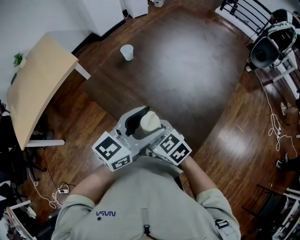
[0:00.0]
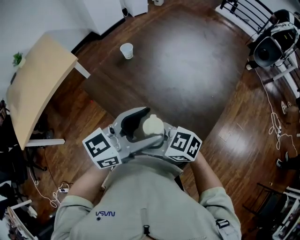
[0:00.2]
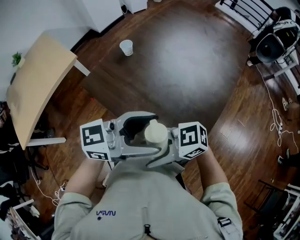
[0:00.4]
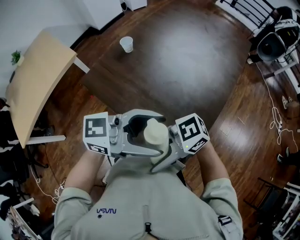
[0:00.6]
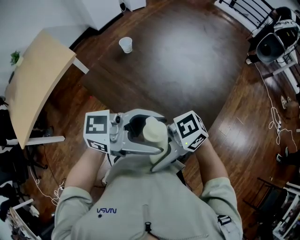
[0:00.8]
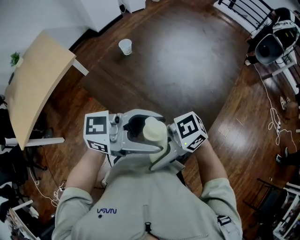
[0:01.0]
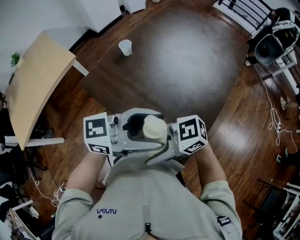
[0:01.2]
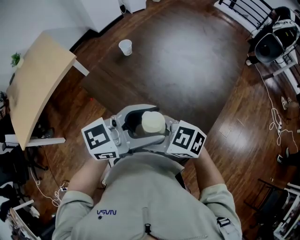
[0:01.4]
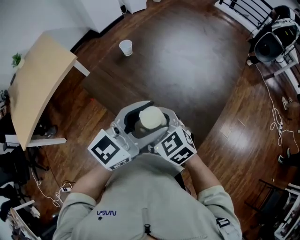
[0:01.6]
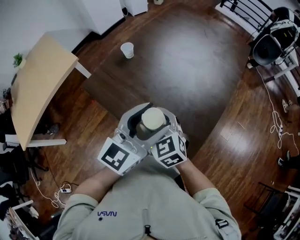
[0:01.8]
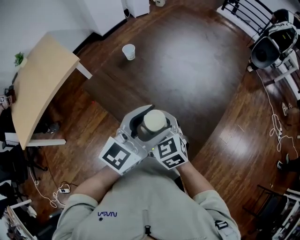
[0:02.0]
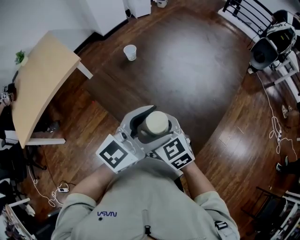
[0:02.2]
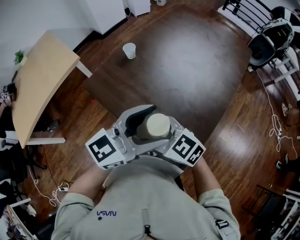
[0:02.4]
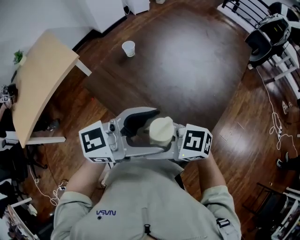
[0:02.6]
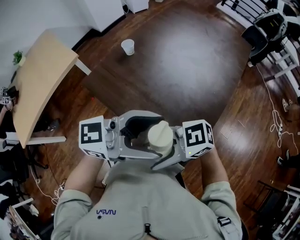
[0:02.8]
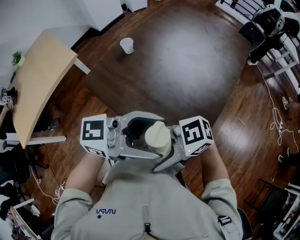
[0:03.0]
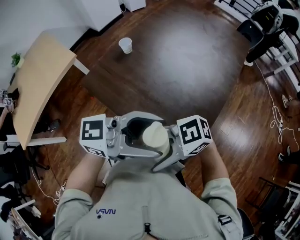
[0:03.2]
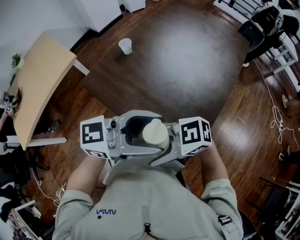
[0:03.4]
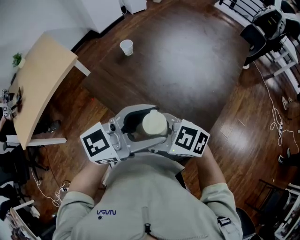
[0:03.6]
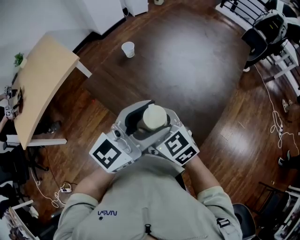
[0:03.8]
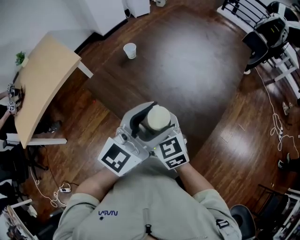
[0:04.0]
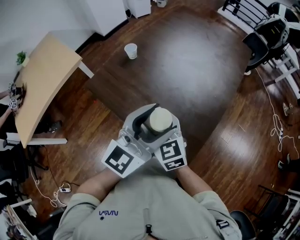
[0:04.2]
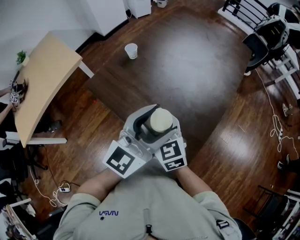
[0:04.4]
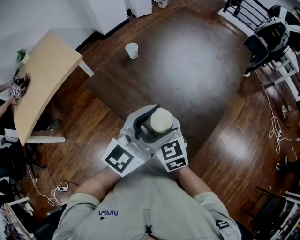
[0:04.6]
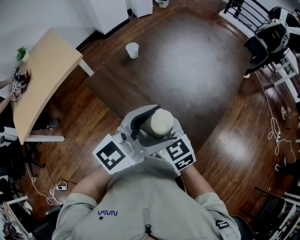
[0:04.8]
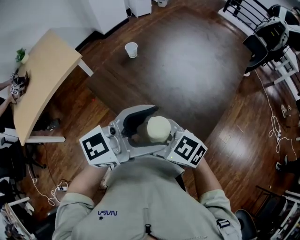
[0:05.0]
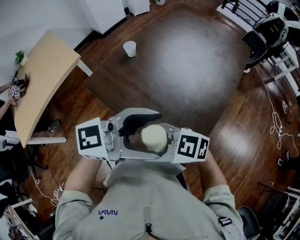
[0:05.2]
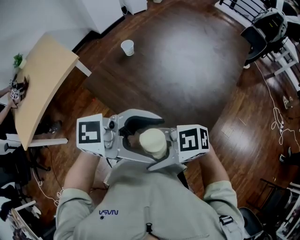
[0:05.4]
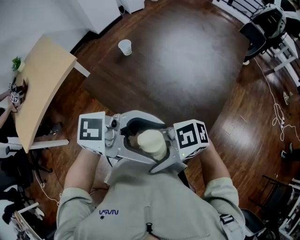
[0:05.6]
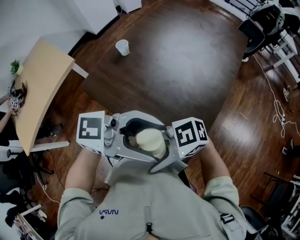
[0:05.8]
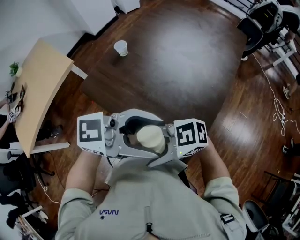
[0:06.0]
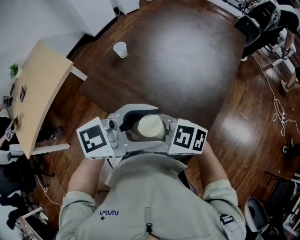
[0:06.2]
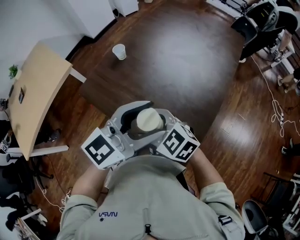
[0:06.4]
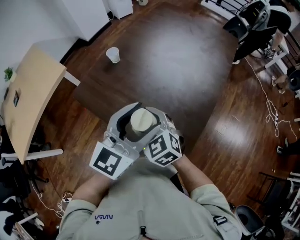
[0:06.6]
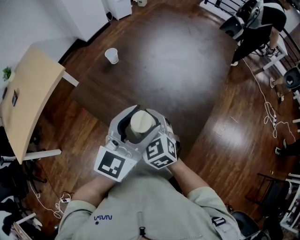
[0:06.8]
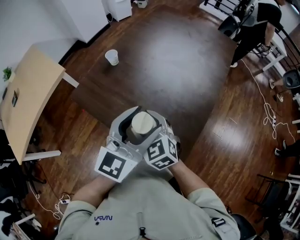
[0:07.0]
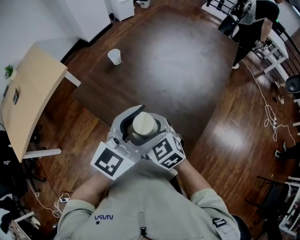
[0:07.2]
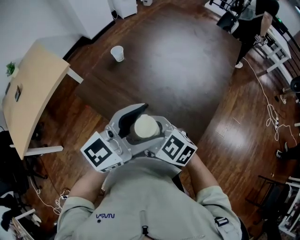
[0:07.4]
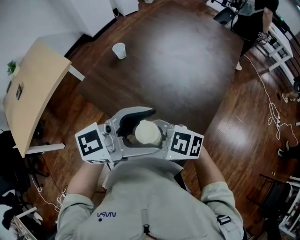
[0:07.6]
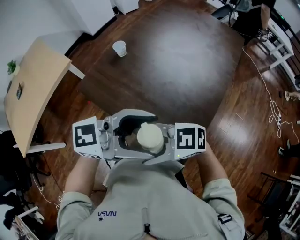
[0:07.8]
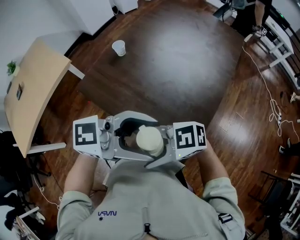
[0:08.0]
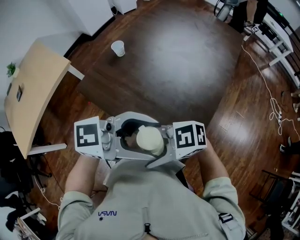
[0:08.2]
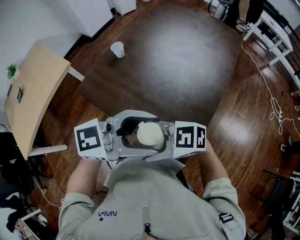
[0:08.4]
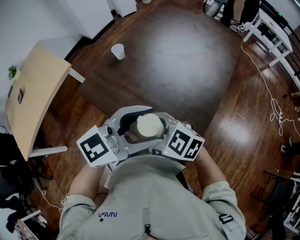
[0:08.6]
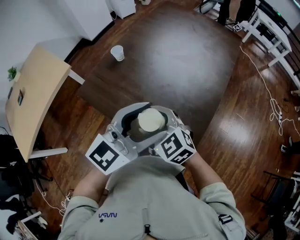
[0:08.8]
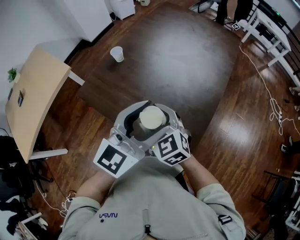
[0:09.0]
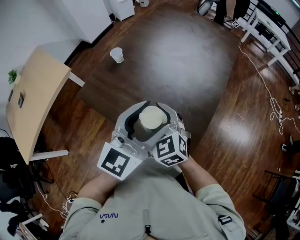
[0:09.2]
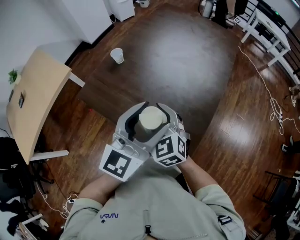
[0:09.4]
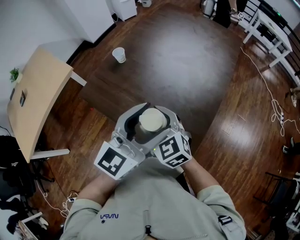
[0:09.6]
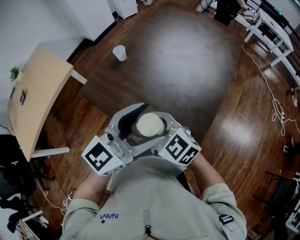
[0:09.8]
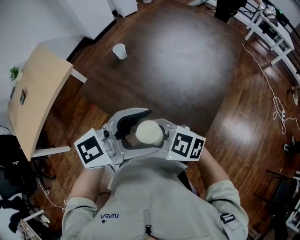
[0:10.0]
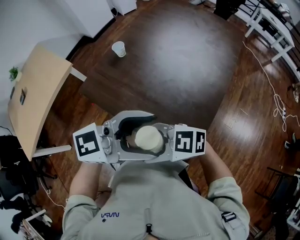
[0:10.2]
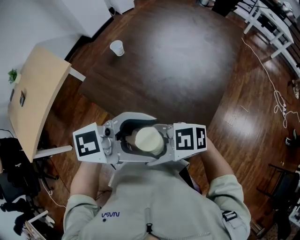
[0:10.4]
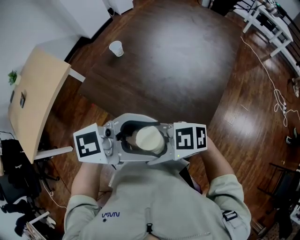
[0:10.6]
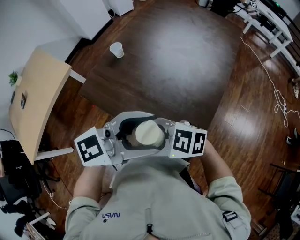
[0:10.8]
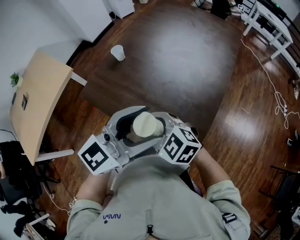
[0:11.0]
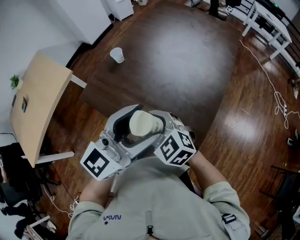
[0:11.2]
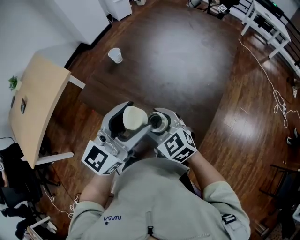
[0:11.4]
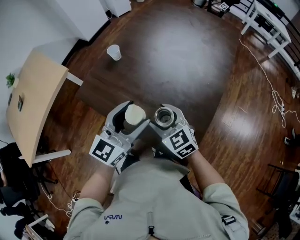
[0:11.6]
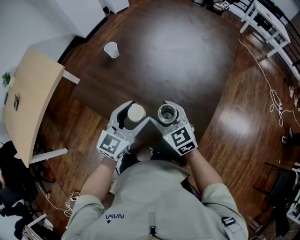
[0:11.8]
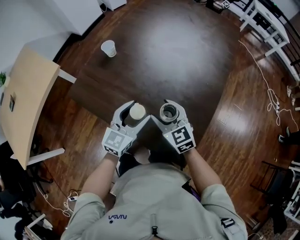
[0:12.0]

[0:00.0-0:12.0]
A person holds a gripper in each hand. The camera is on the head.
0:00.0 to 0:01.6: The right gripper shifts approximately 5 cm upward.
0:01.6 to 0:03.0: The right gripper moves approximately 15 cm, and rotates some 70 degrees. Meanwhile the left gripper changes place by about 5 cm, and rotates approximately 40 degrees.
0:03.0 to 0:04.4: The left gripper ends up approximately 5 cm from where it was, and changes its angle by some 50 degrees; the right gripper changes place by some 15 cm, and swivels approximately 80 degrees.
0:04.4 to 0:06.0: The left gripper changes place by some 5 cm, and rotates some 50 degrees; the right gripper moves about 15 cm, and rotates about 70 degrees.
0:06.0 to 0:07.6: The right gripper rotates roughly 20 degrees, while the left gripper rotates some 20 degrees.
0:07.6 to 0:09.0: The right gripper changes place by about 10 cm, and swivels about 50 degrees. The left gripper rotates approximately 30 degrees.
0:09.0 to 0:10.4: The left gripper changes place by roughly 10 cm, and turns by roughly 40 degrees. Meanwhile the right gripper shifts by approximately 15 cm, and changes its angle by some 70 degrees.
0:10.4 to 0:12.0: The right gripper ends up some 25 cm from where it was, and changes its angle by roughly 70 degrees. Meanwhile the left gripper is displaced downward by about 20 cm, and turns by about 50 degrees.

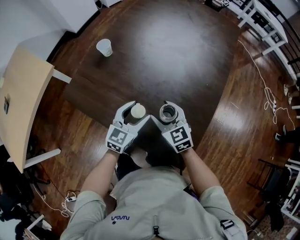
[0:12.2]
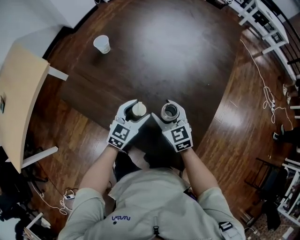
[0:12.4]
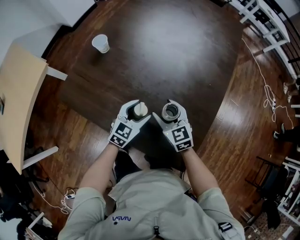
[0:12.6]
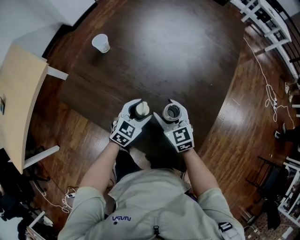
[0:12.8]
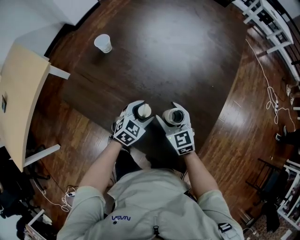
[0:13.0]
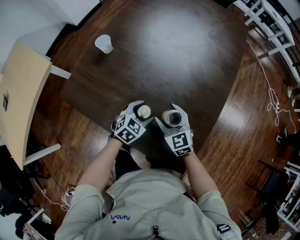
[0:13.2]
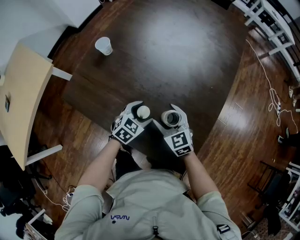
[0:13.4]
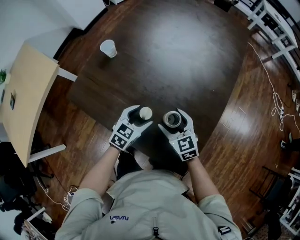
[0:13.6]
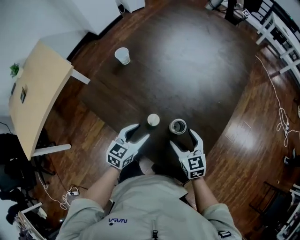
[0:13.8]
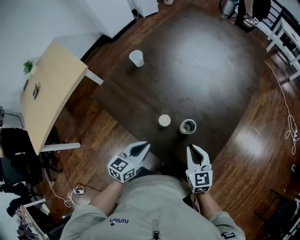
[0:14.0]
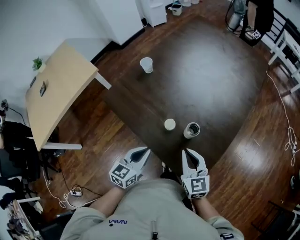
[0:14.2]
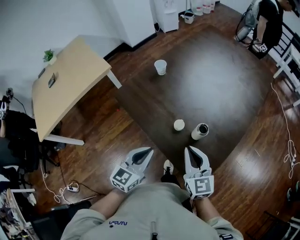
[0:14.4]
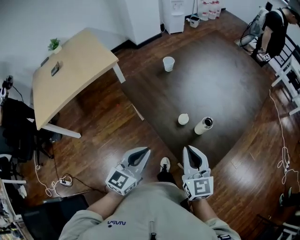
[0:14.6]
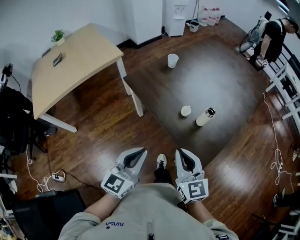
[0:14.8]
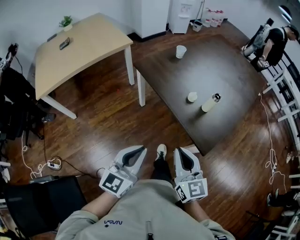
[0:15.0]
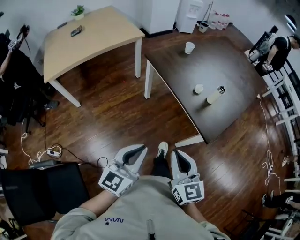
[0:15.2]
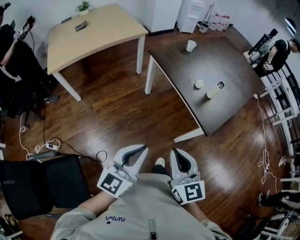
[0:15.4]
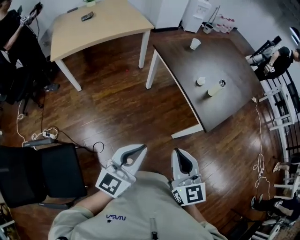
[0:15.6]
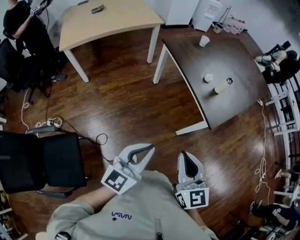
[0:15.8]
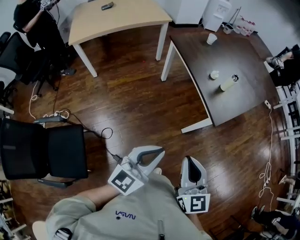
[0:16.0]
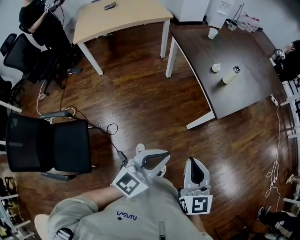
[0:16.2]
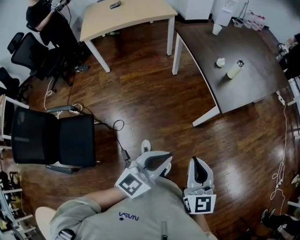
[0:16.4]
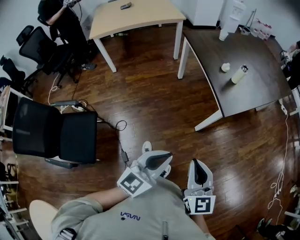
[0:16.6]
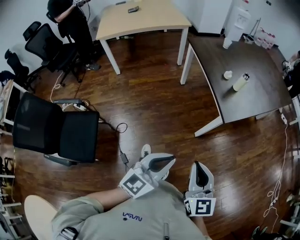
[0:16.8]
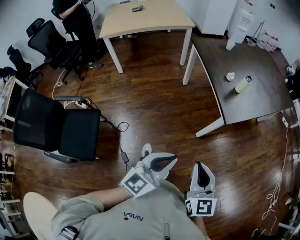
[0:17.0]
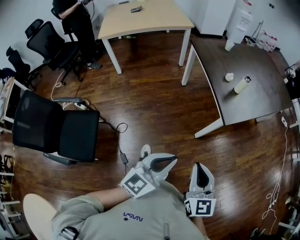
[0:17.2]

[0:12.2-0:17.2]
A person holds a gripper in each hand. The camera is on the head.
0:12.2 to 0:13.8: The left gripper travels backward by some 5 cm, and travels downward and back again, approximately 10 cm each way. Meanwhile the right gripper goes some 10 cm to the right.
0:13.8 to 0:15.6: The pair of grippers is taken backward, about 40 cm. Both grippers travel together upward, some 20 cm. The left gripper points its fingers roughly 30 degrees further upward, and closes, while the right gripper swivels some 30 degrees, and closes up.
0:15.6 to 0:17.2: The left gripper moves to the right and backward, approximately 20 cm. The right gripper goes about 15 cm to the right, backward and downward.

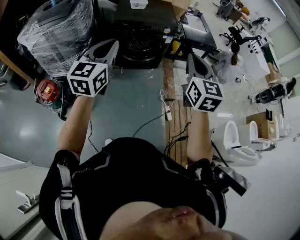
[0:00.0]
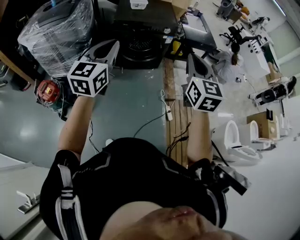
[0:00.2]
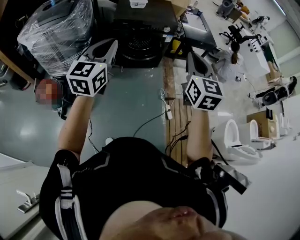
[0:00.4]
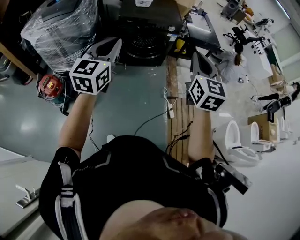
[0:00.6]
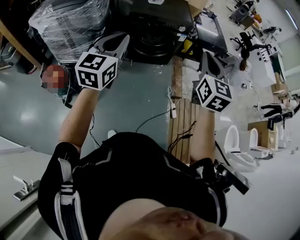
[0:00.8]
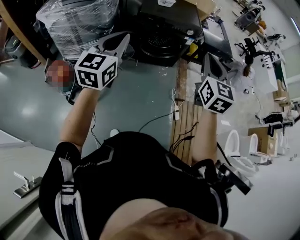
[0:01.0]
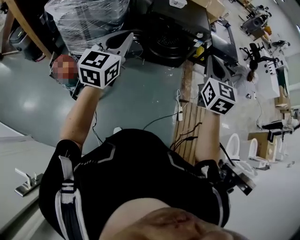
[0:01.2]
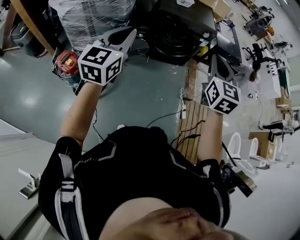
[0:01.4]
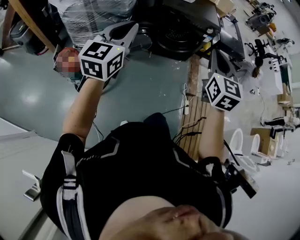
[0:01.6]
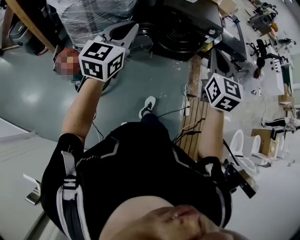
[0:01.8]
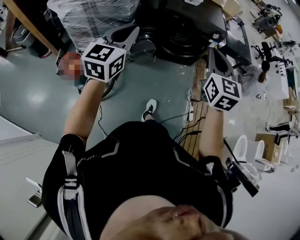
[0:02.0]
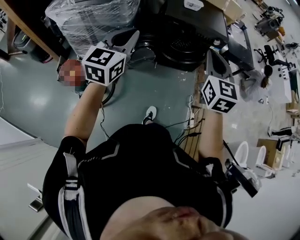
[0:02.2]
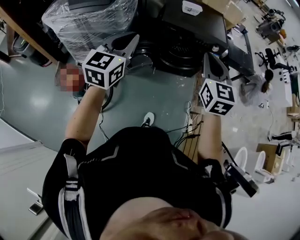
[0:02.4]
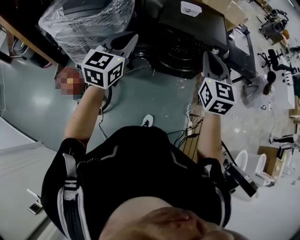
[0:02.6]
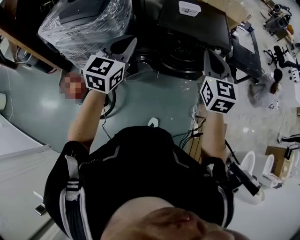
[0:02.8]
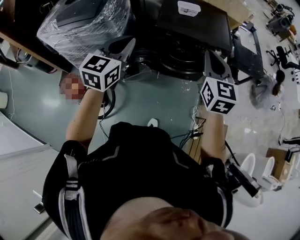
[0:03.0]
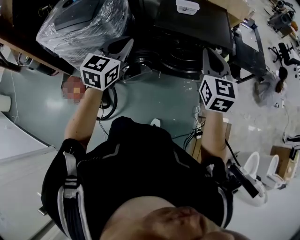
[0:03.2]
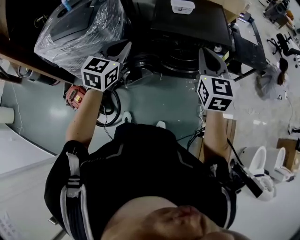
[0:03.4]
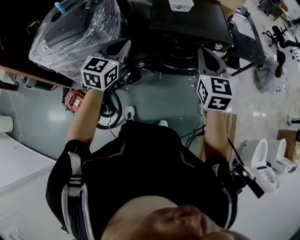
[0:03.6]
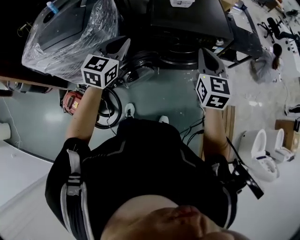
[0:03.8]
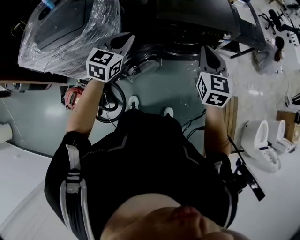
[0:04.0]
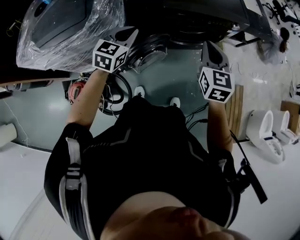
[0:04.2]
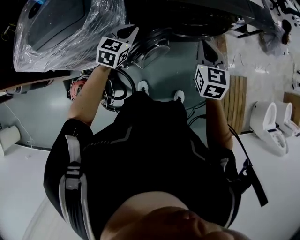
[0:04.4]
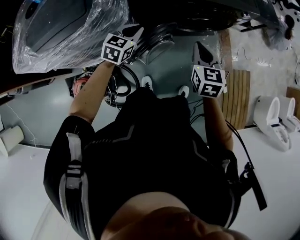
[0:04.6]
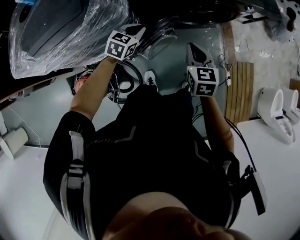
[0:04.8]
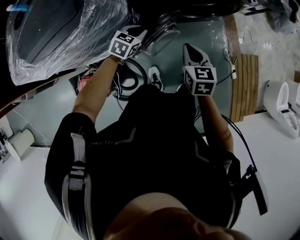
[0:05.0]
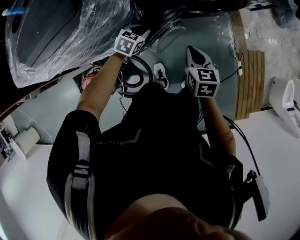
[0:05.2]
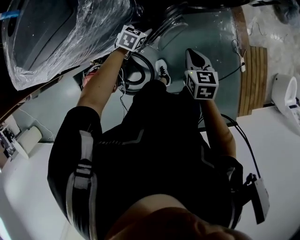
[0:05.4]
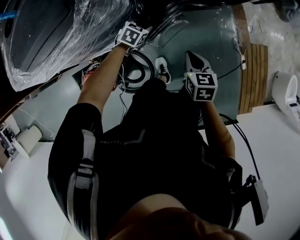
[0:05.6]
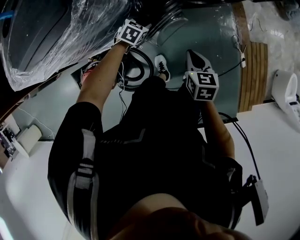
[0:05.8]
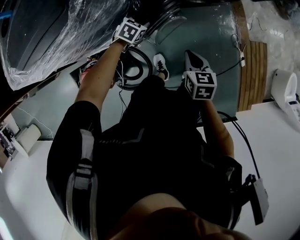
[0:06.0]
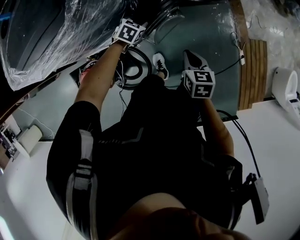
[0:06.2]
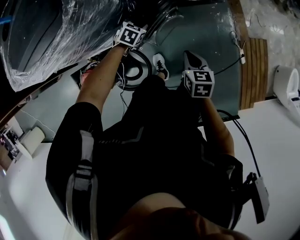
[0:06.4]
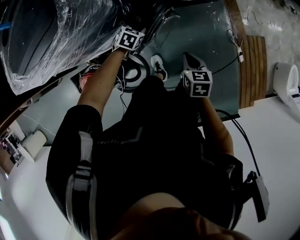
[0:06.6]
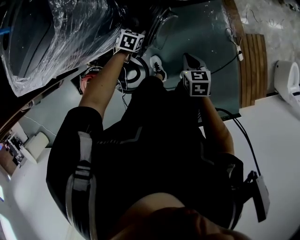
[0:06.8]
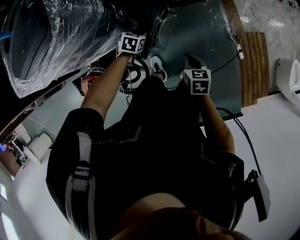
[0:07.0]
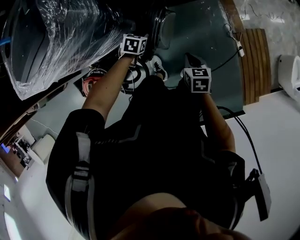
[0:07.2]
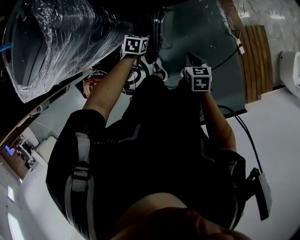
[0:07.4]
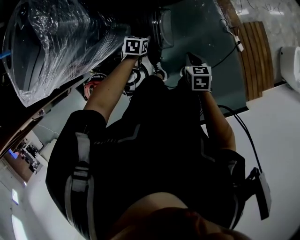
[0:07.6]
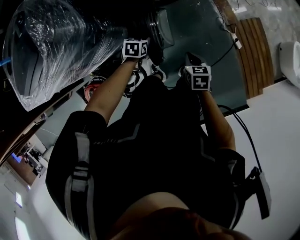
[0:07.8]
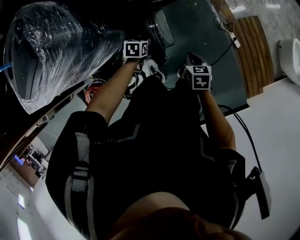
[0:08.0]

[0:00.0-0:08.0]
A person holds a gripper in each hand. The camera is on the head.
0:00.0 to 0:01.6: The grippers both shift to the left by some 20 cm.
0:01.6 to 0:03.2: The grippers both shift forward by about 30 cm.
0:03.2 to 0:04.8: Both grippers travel together downward and to the left, approximately 35 cm. The left gripper rotates roughly 40 degrees. Meanwhile the right gripper rotates roughly 30 degrees.
0:04.8 to 0:06.4: The left gripper goes some 20 cm downward, changes its angle by some 20 degrees, and opens; the right gripper goes roughly 15 cm downward and backward, and turns by some 20 degrees.
0:06.4 to 0:08.0: The two grippers go roughly 20 cm to the right.
